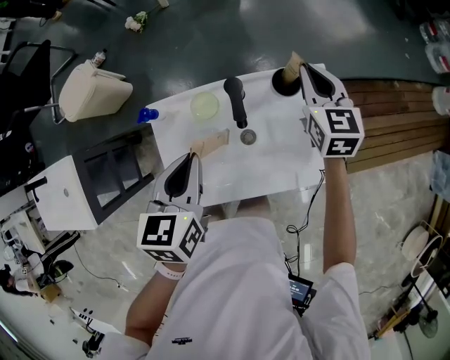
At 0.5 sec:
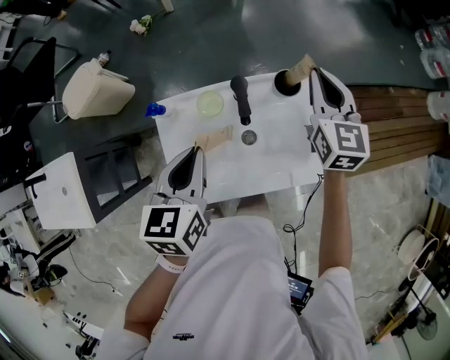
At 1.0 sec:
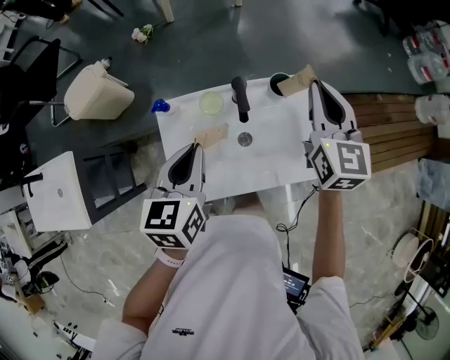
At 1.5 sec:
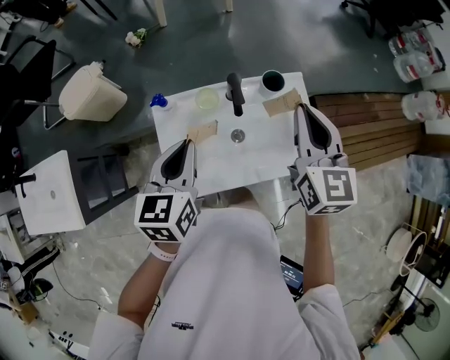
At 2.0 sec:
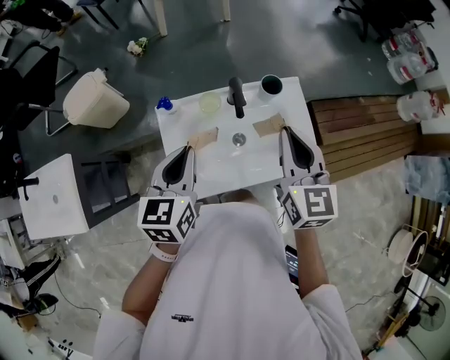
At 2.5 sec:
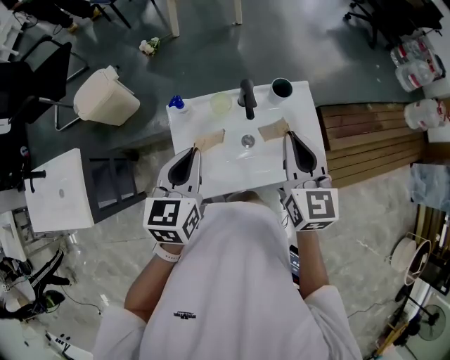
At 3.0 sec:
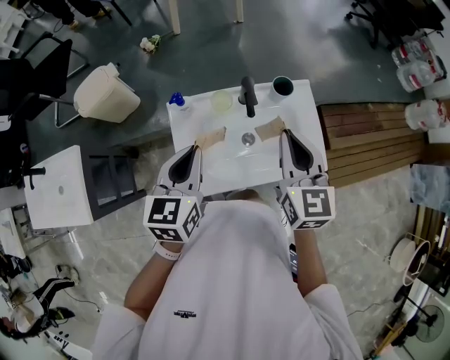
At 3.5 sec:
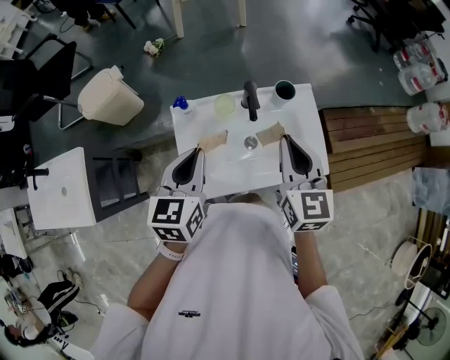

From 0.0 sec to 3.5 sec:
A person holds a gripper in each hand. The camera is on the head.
From 0.0 sec to 2.0 sec: The right gripper goes roughly 25 cm backward and upward. Meanwhile the left gripper goes approximately 10 cm backward and upward.
From 2.0 sec to 3.5 sec: The grippers move only a little.

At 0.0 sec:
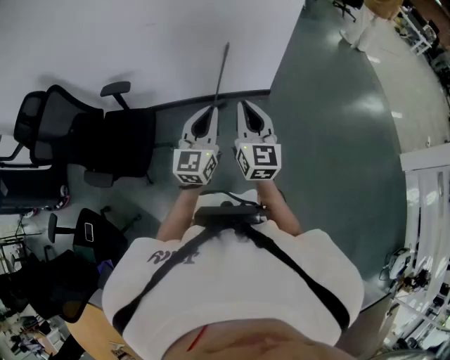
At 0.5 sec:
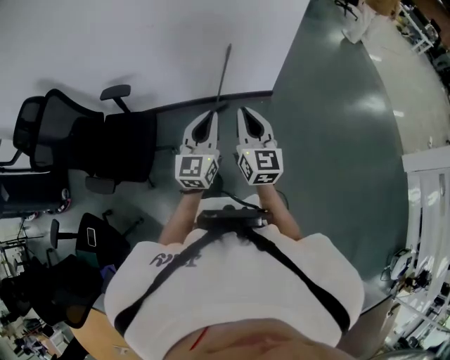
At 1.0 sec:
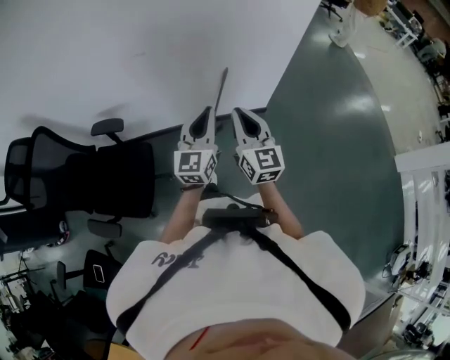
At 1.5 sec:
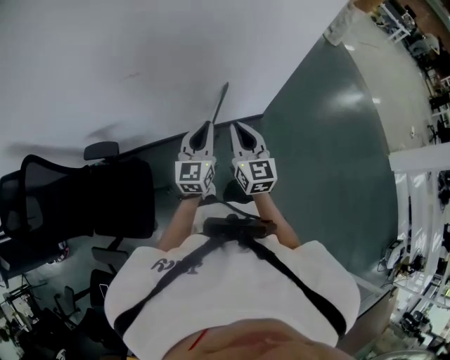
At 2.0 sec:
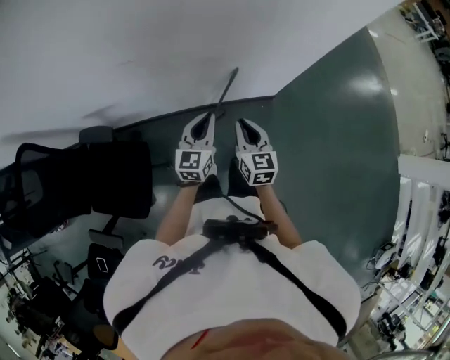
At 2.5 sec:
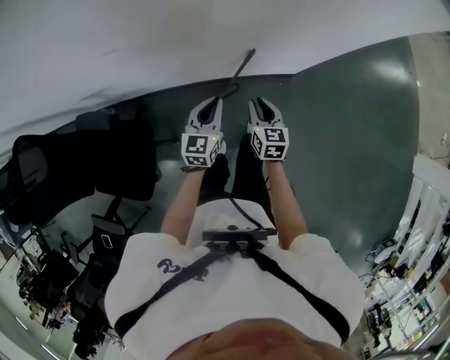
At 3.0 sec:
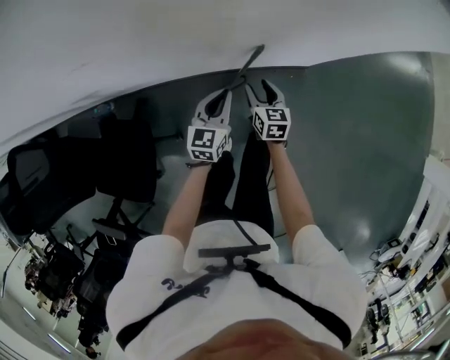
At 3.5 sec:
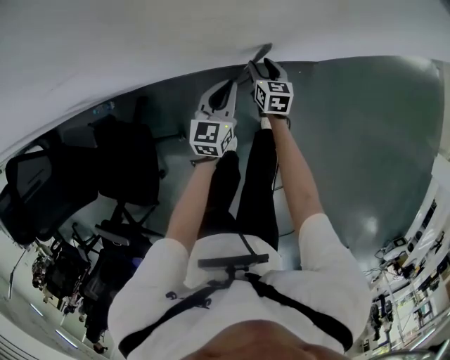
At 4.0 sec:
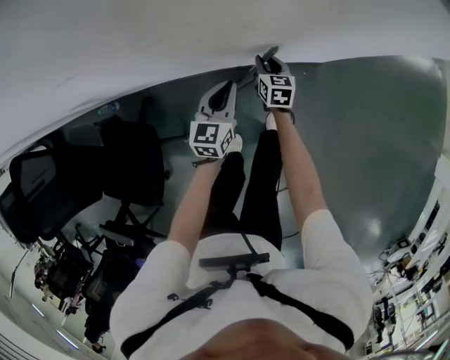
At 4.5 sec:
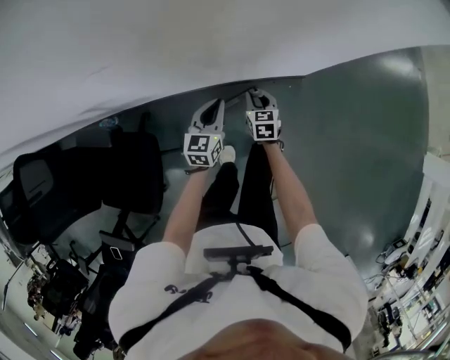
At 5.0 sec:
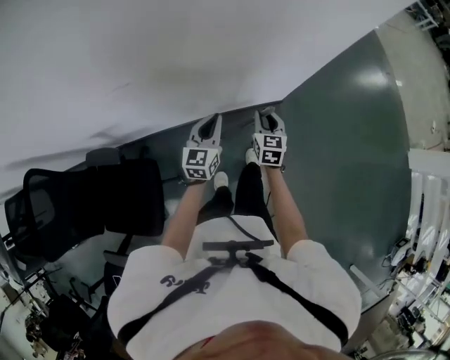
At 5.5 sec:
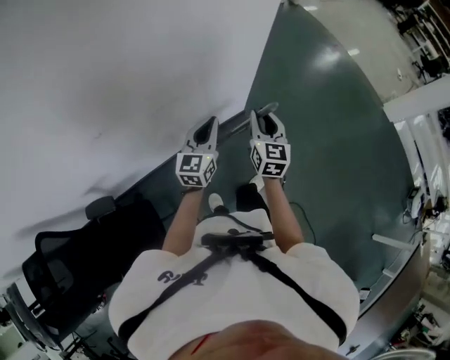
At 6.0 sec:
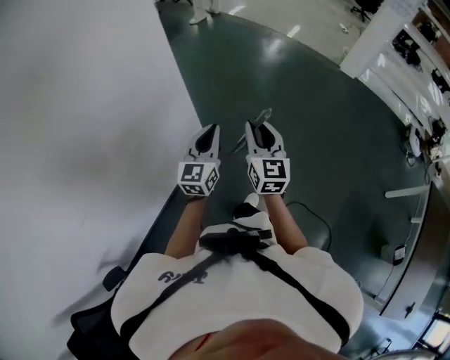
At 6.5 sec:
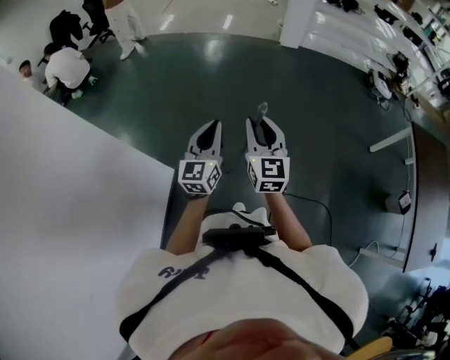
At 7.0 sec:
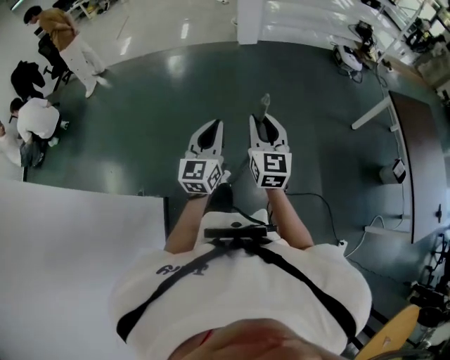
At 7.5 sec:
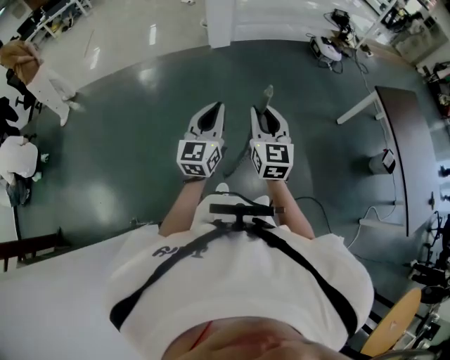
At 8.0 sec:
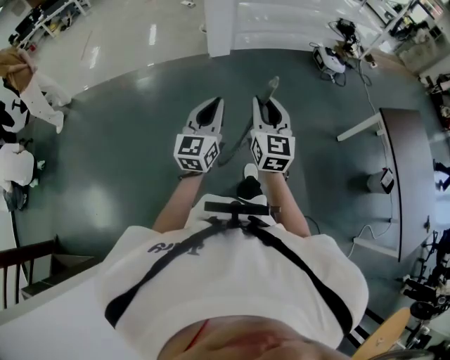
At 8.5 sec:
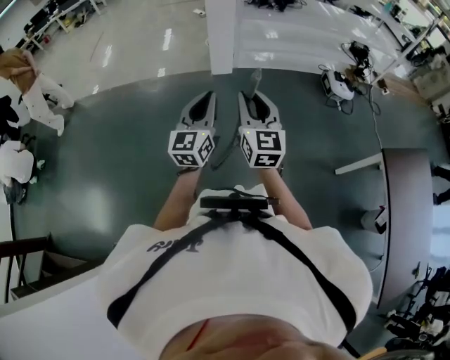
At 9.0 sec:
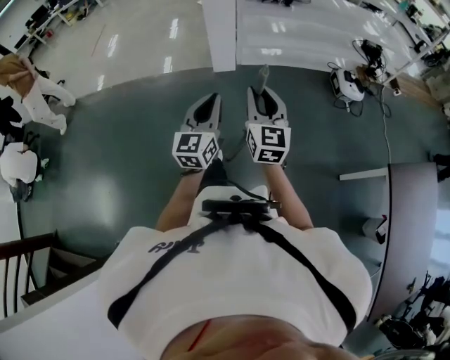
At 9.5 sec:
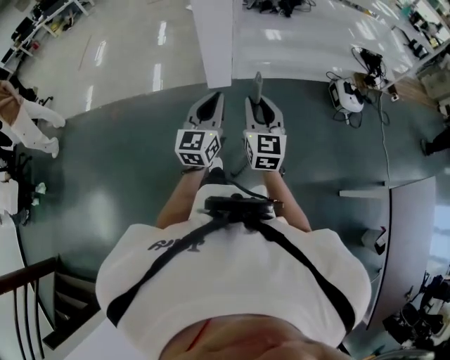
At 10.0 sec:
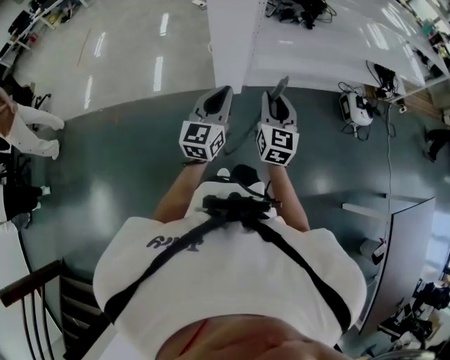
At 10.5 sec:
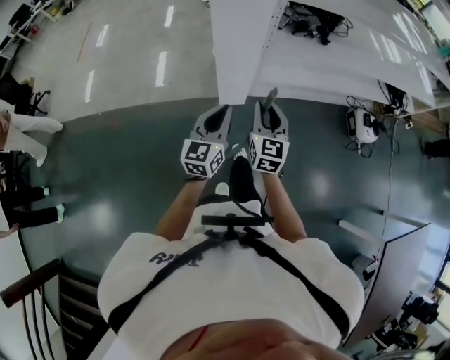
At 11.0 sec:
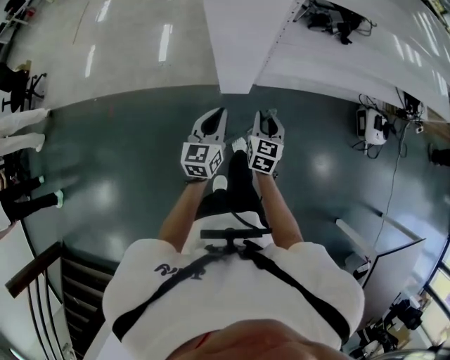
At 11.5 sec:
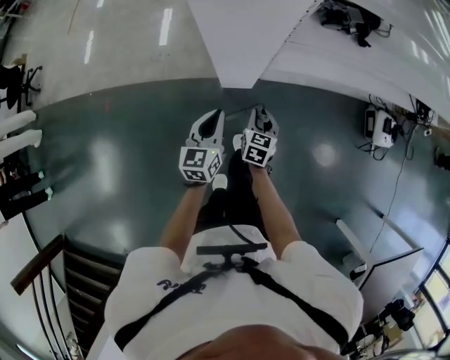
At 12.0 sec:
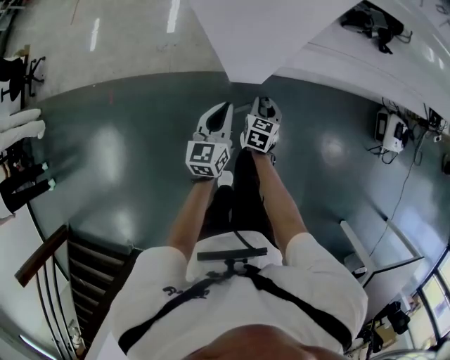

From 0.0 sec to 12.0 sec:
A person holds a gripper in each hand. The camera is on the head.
From 0.0 sec to 2.0 sec: The two grippers go roughly 40 cm forward and downward. The right gripper changes its angle by approximately 20 degrees.
From 2.0 sec to 4.0 sec: The left gripper is displaced downward and forward by about 30 cm, while the right gripper goes approximately 40 cm downward and forward, and opens and closes again.
From 4.0 sec to 6.0 sec: The two grippers travel together, some 50 cm. The right gripper travels upward by roughly 60 cm, and points its fingers about 40 degrees further upward. The left gripper turns by about 50 degrees.
From 6.0 sec to 8.0 sec: The pair of grippers is taken about 80 cm. The left gripper turns by some 50 degrees. The right gripper swivels approximately 50 degrees.
From 8.0 sec to 10.0 sec: The two grippers travel together, forward, some 70 cm.
From 10.0 sec to 12.0 sec: The right gripper is displaced downward and forward by some 50 cm, and tips its fingers downward by about 40 degrees. The left gripper is displaced forward and downward by about 40 cm, and changes its angle by roughly 30 degrees.

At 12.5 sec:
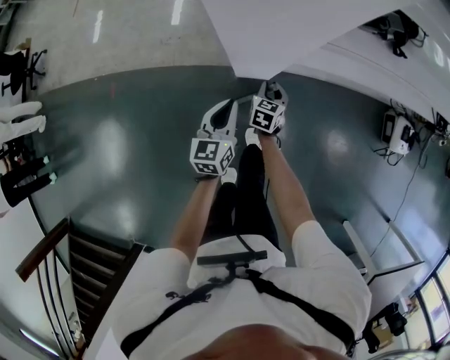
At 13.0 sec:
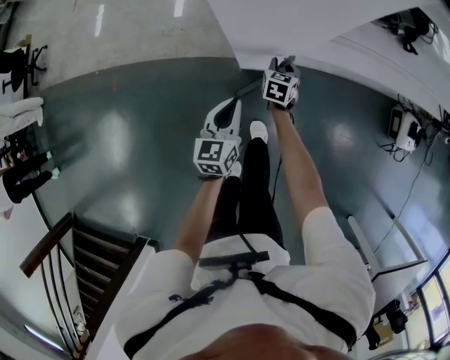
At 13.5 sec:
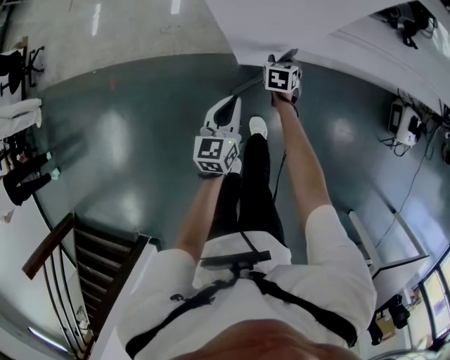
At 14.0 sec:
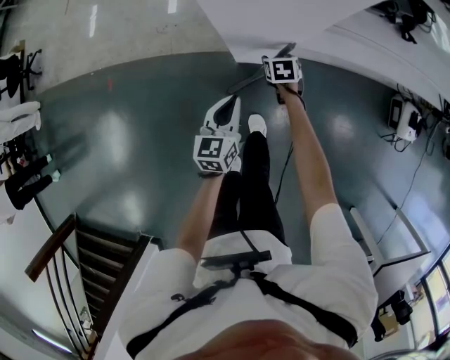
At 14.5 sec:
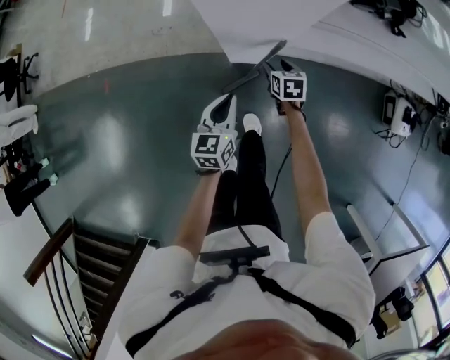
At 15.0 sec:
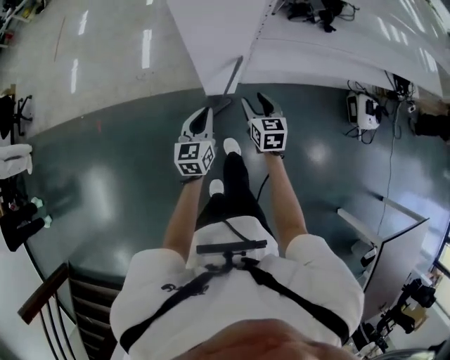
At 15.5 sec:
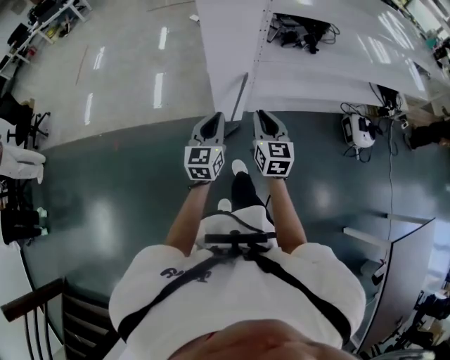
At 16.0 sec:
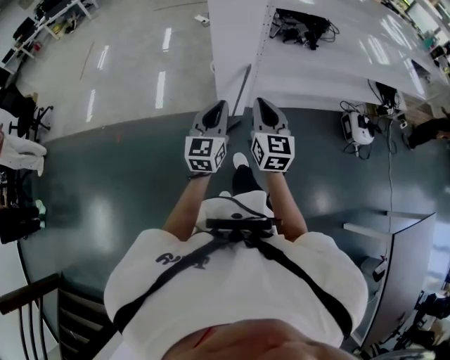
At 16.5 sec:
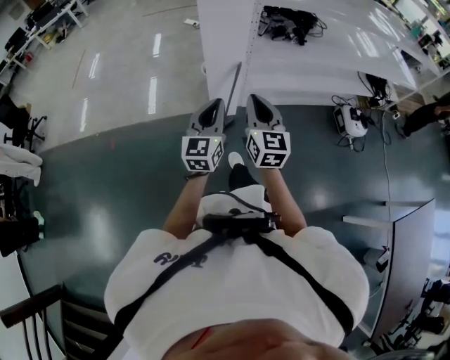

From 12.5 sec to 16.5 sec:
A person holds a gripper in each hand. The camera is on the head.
From 12.5 sec to 14.5 sec: The right gripper turns by about 20 degrees, and opens up.
From 14.5 sec to 16.5 sec: Both grippers move upward and backward, roughly 50 cm. The left gripper swivels some 30 degrees; the right gripper angles its fingers upward, by approximately 50 degrees, and closes.

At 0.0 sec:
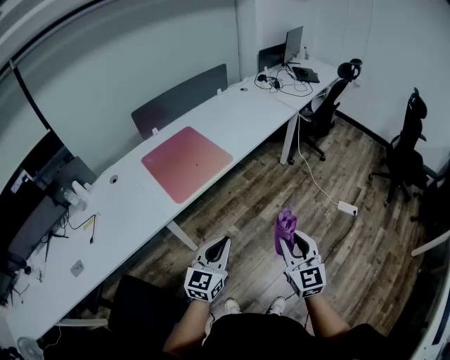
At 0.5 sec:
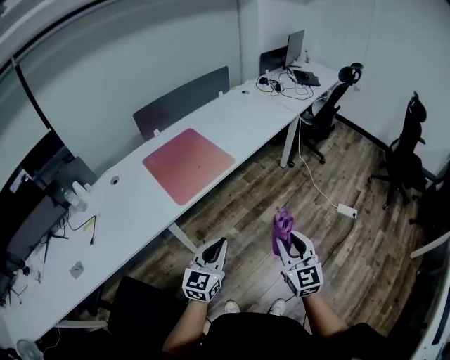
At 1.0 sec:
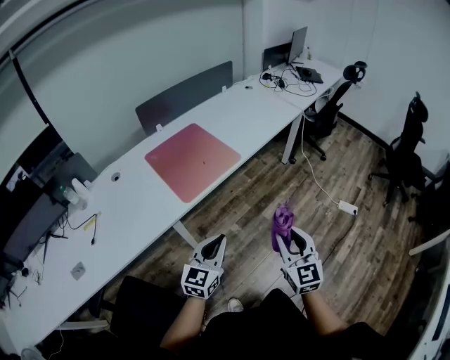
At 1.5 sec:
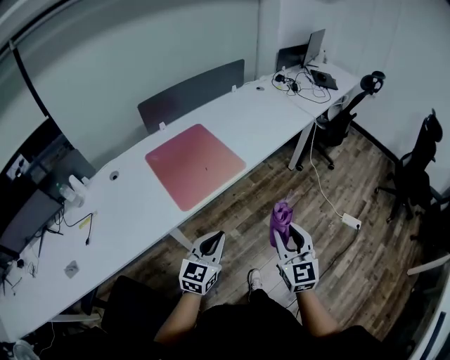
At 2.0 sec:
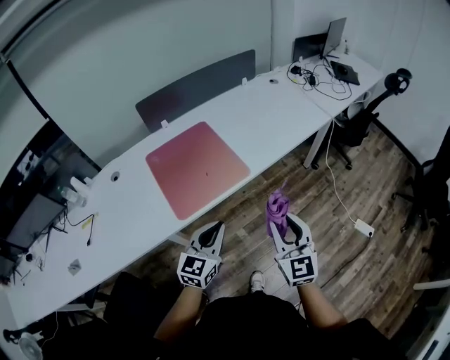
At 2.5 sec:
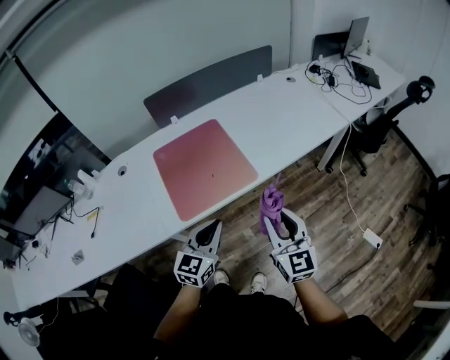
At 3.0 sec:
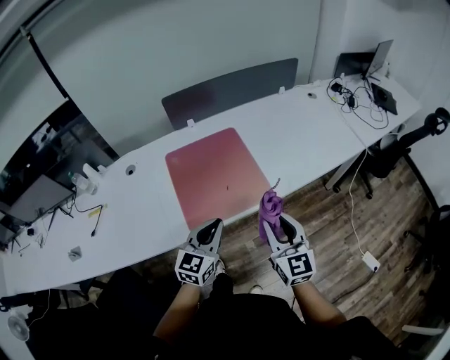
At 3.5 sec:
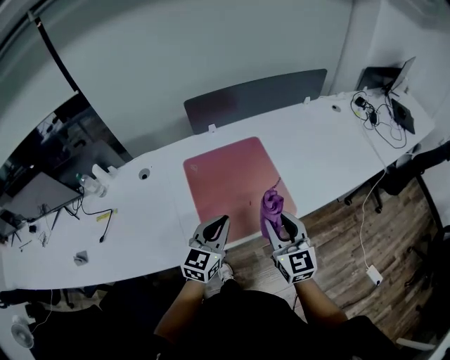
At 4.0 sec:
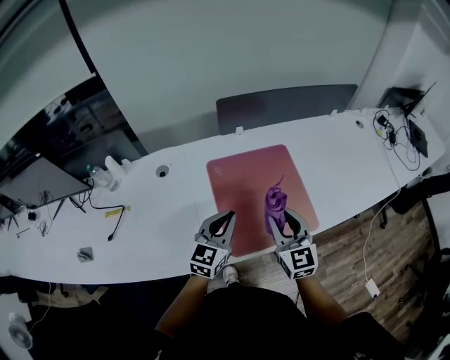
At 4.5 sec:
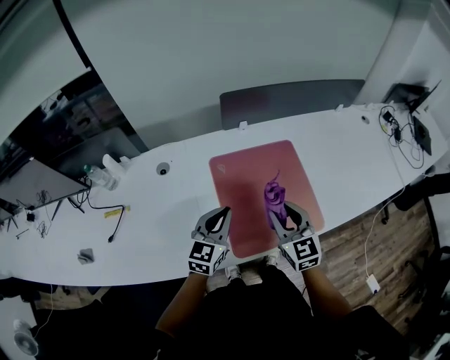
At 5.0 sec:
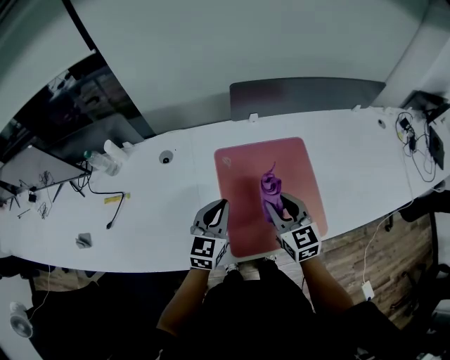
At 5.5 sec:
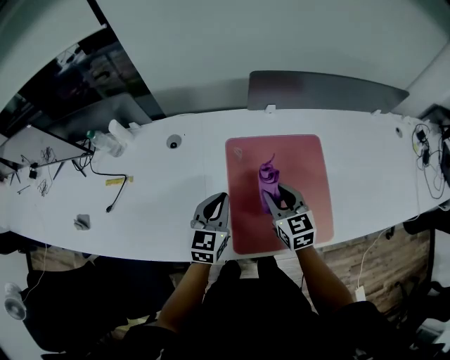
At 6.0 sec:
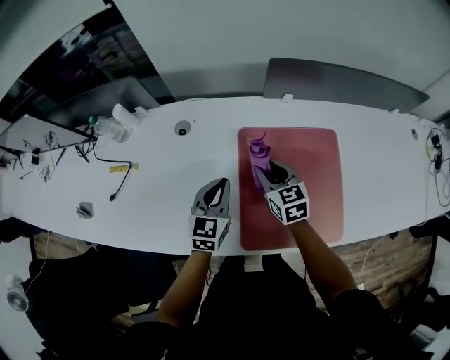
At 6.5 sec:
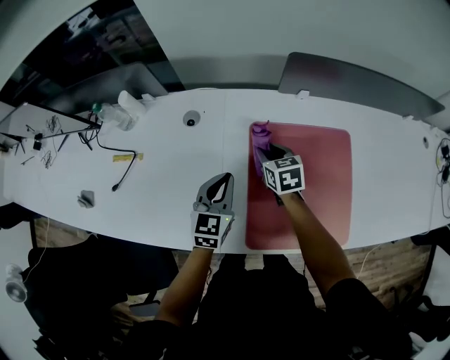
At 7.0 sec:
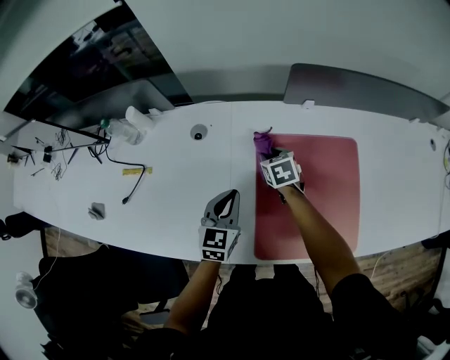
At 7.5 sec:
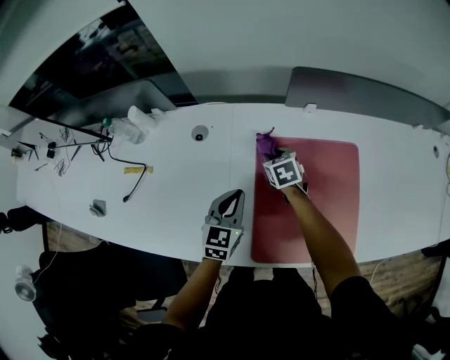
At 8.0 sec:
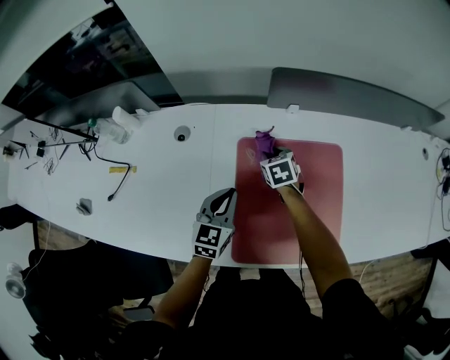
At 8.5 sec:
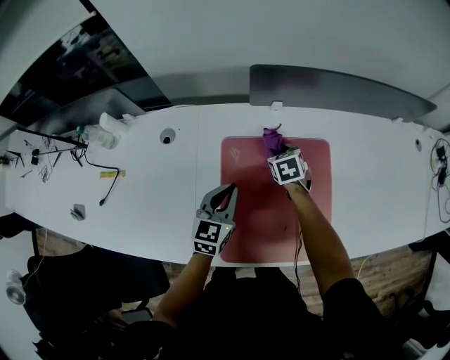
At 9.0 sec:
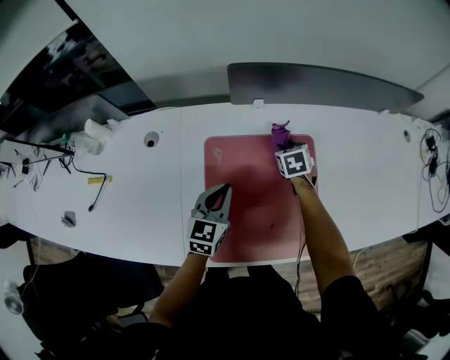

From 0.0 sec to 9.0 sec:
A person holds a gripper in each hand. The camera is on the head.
From 0.0 sec to 2.0 sec: The two grippers go approximately 20 cm forward.
From 2.0 sec to 4.5 sec: The right gripper travels forward and to the left by approximately 40 cm, and changes its angle by approximately 30 degrees. Meanwhile the left gripper travels to the left and forward by approximately 35 cm, and changes its angle by some 20 degrees.
From 4.5 sec to 7.0 sec: The right gripper shifts some 35 cm forward, downward and to the left, and points its fingers approximately 30 degrees further downward. The left gripper goes approximately 15 cm downward, to the left and forward, and rotates some 30 degrees.
From 7.0 sec to 9.0 sec: The right gripper is displaced to the right by approximately 25 cm. Meanwhile the left gripper moves to the right, approximately 15 cm.